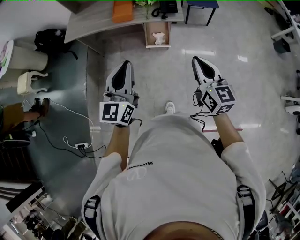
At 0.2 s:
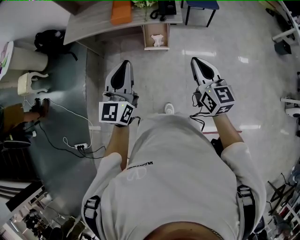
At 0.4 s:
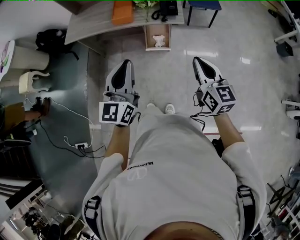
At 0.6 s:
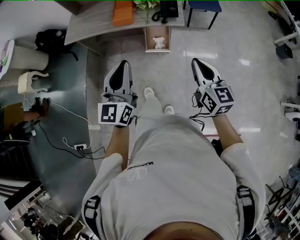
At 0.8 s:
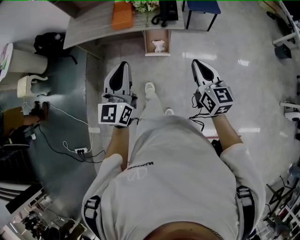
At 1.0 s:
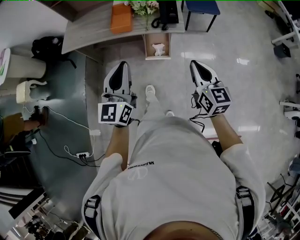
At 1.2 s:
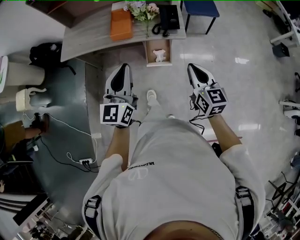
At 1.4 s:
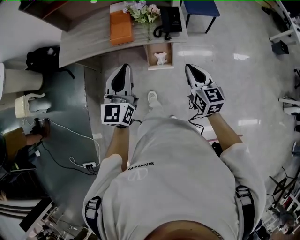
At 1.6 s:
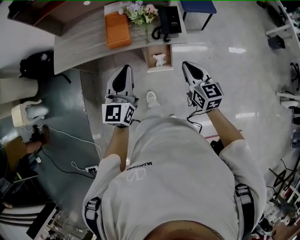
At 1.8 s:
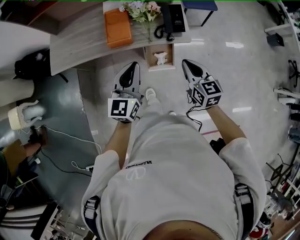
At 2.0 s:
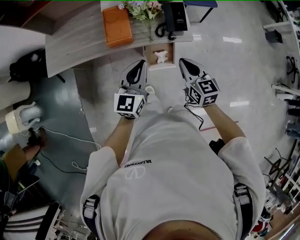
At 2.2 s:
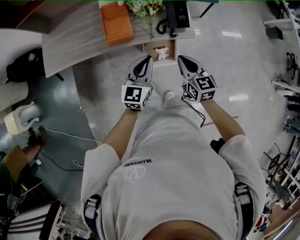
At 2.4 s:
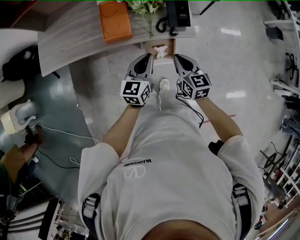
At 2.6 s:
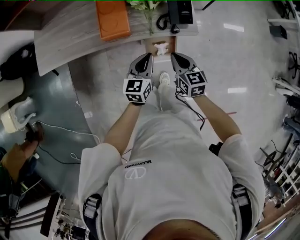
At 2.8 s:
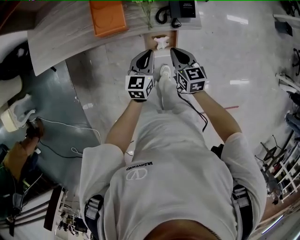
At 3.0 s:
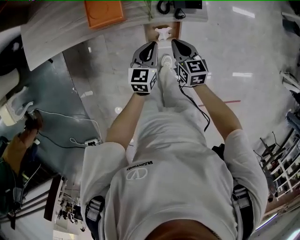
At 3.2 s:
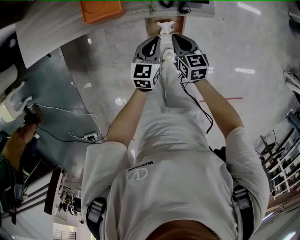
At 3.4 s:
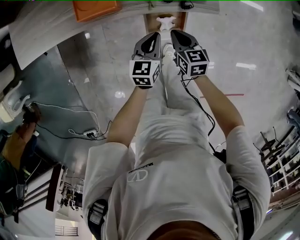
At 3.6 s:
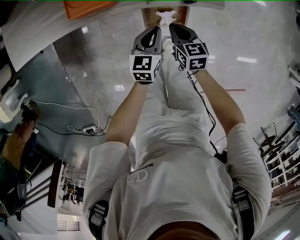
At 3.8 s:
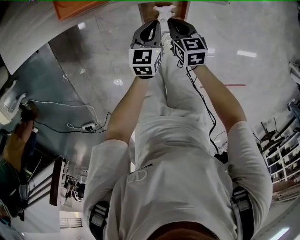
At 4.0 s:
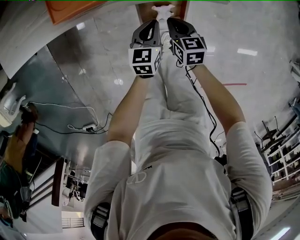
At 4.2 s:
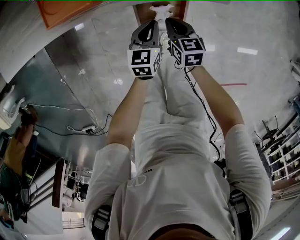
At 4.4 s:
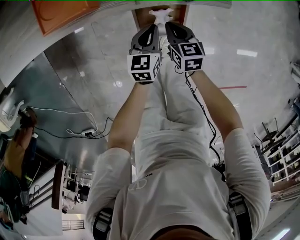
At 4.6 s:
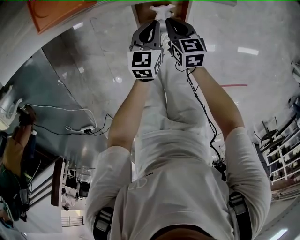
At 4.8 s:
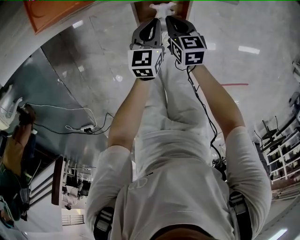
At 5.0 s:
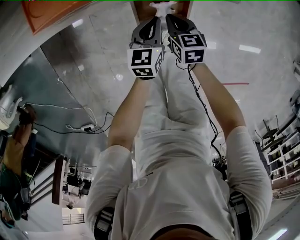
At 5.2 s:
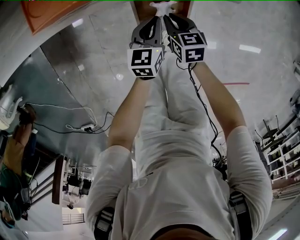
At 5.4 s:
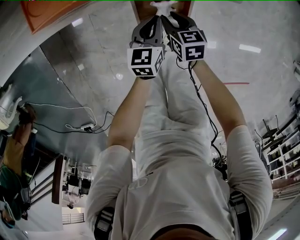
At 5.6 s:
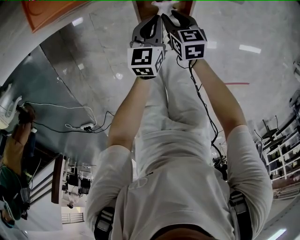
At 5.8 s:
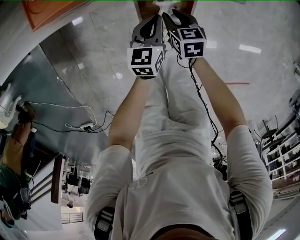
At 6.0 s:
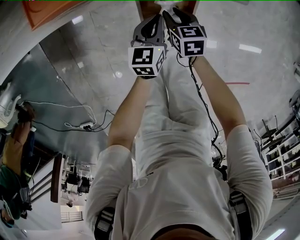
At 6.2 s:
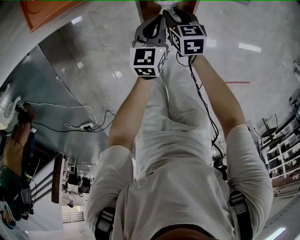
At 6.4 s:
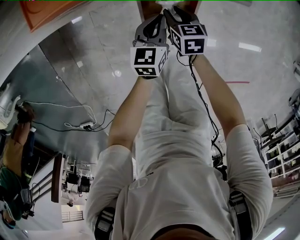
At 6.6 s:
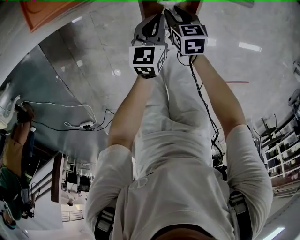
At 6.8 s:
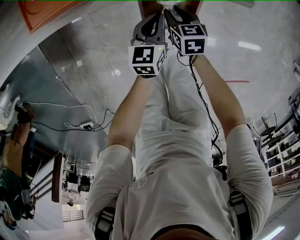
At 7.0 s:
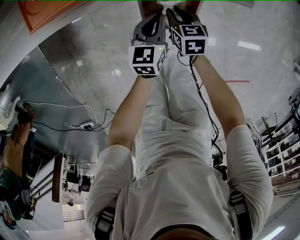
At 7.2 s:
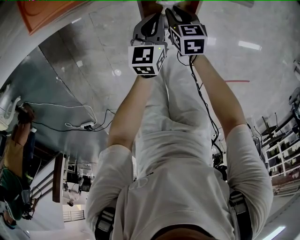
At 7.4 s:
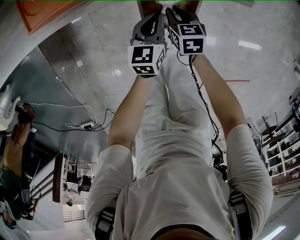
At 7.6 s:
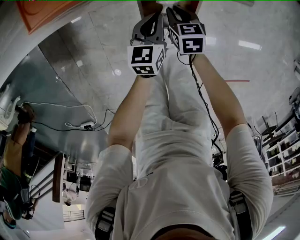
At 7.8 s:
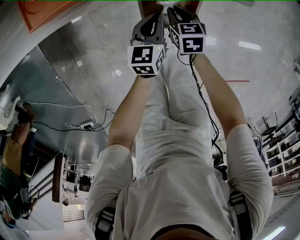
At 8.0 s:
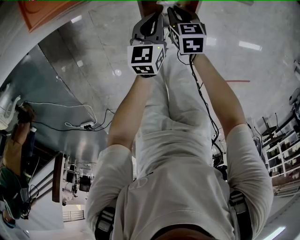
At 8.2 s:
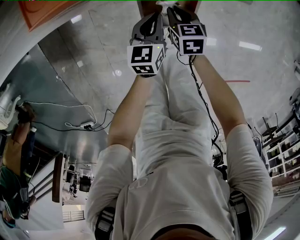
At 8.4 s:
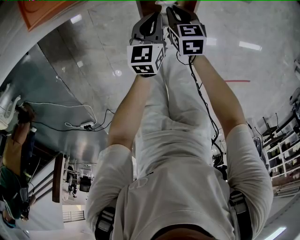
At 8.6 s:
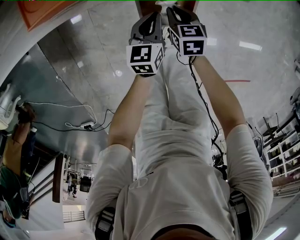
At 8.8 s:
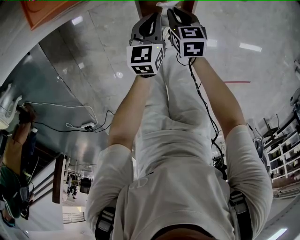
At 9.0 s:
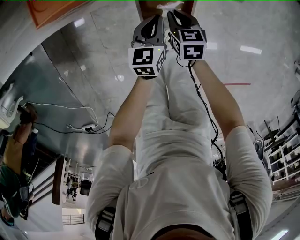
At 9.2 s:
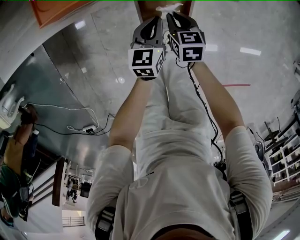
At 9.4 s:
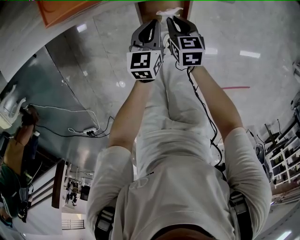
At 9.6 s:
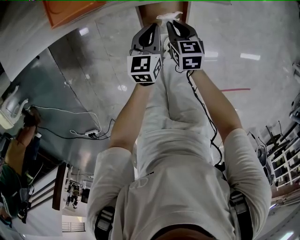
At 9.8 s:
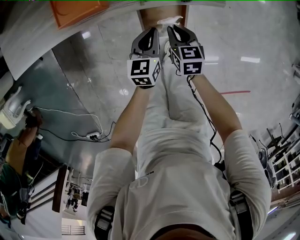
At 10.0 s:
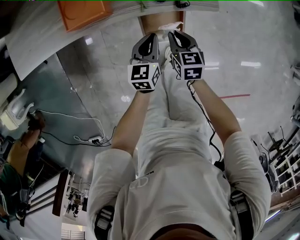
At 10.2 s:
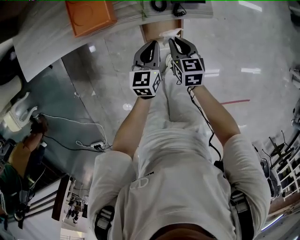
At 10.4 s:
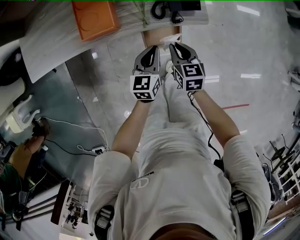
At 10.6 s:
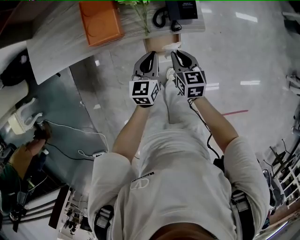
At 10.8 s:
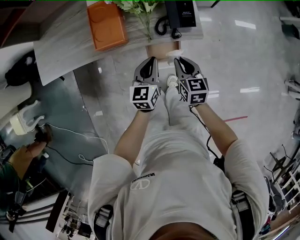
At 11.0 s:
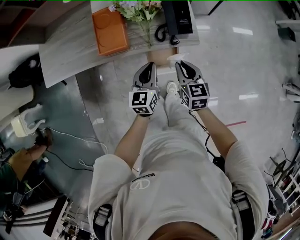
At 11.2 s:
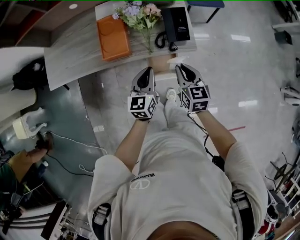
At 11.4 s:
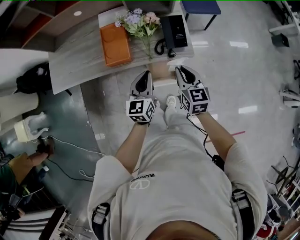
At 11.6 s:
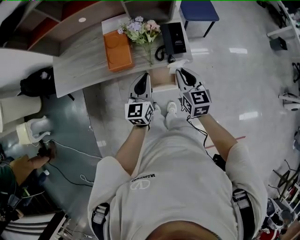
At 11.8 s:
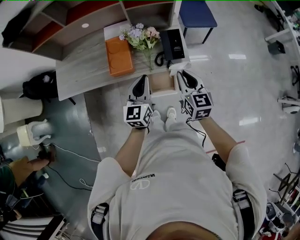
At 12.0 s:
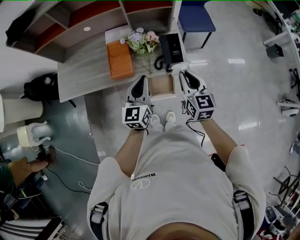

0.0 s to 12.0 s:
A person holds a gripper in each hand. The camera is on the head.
0.0 to 1.6 s: Both grippers move forward, roughly 30 cm.
1.6 to 3.0 s: The right gripper is displaced downward and forward by some 30 cm. The left gripper moves downward, some 30 cm, and changes its angle by some 30 degrees.
3.0 to 4.4 s: Both grippers move downward, some 20 cm.
4.4 to 6.0 s: The right gripper opens its fingers.
6.0 to 7.6 s: Both grippers stay about where they are.
7.6 to 9.0 s: The grippers stay close to where they were, moving slightly.
9.0 to 10.4 s: The grippers both shift upward by roughly 20 cm.
10.4 to 12.0 s: The two grippers go approximately 30 cm upward. The left gripper swivels roughly 20 degrees. The right gripper turns by some 20 degrees.

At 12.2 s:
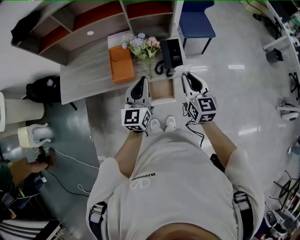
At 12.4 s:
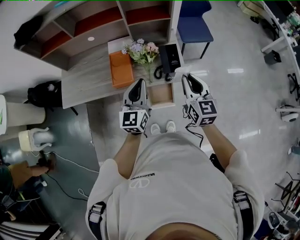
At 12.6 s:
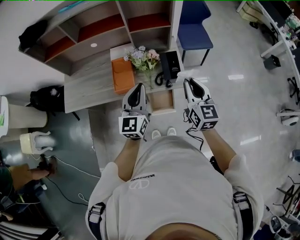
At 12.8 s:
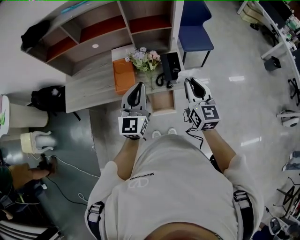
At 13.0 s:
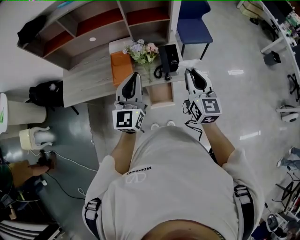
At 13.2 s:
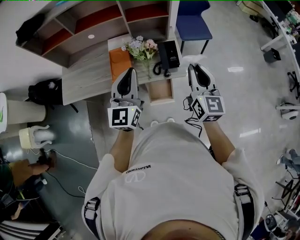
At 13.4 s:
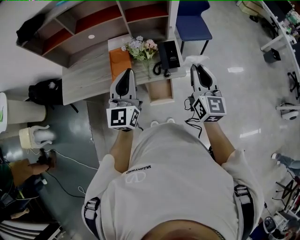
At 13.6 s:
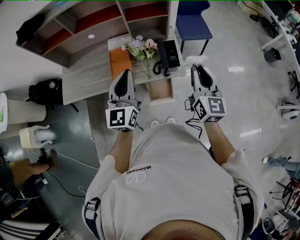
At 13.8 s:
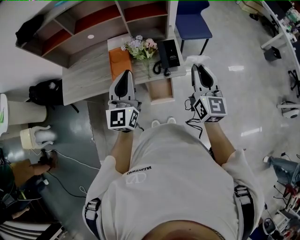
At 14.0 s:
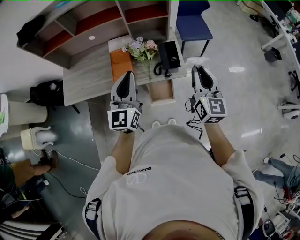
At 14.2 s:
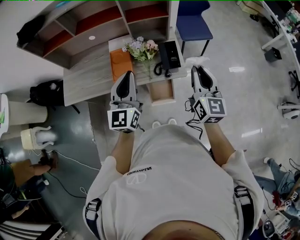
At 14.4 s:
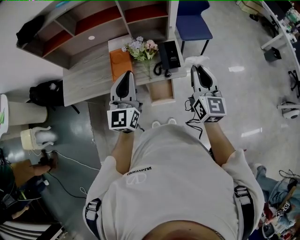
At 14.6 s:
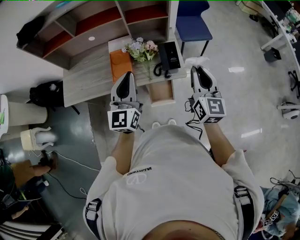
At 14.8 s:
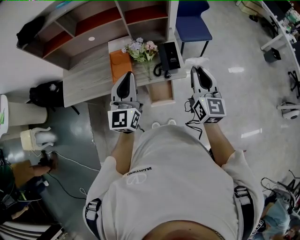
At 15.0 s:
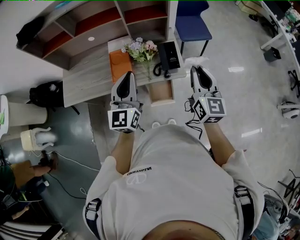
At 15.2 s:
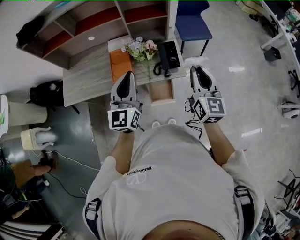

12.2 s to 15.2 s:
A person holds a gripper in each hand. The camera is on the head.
12.2 to 13.8 s: The grippers both shift upward by approximately 10 cm.
13.8 to 15.2 s: Both grippers stay about where they are.

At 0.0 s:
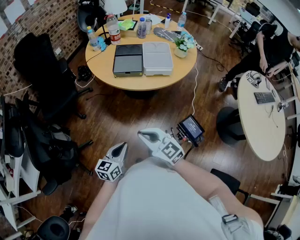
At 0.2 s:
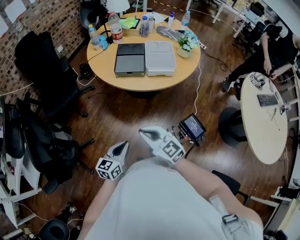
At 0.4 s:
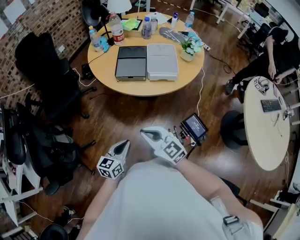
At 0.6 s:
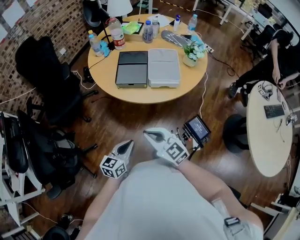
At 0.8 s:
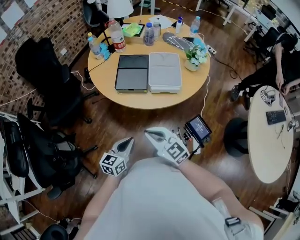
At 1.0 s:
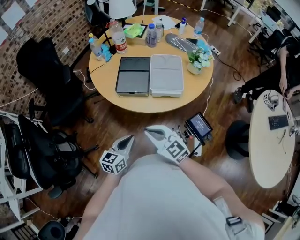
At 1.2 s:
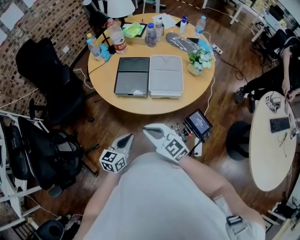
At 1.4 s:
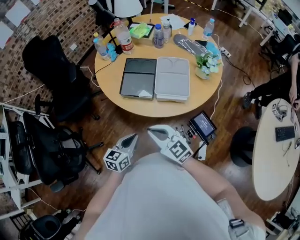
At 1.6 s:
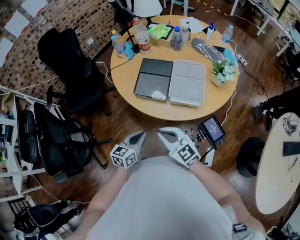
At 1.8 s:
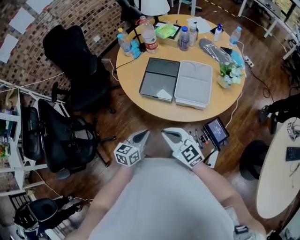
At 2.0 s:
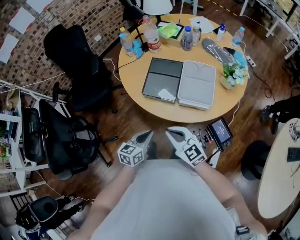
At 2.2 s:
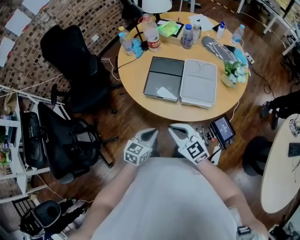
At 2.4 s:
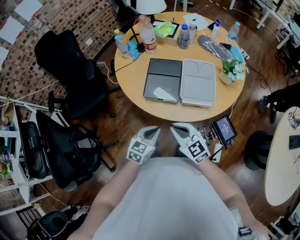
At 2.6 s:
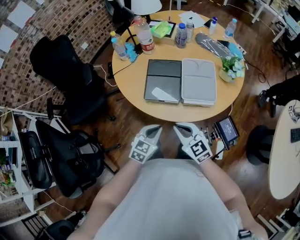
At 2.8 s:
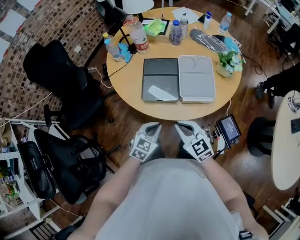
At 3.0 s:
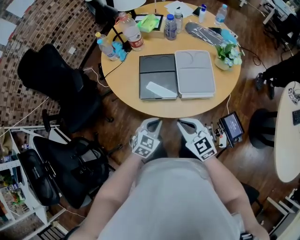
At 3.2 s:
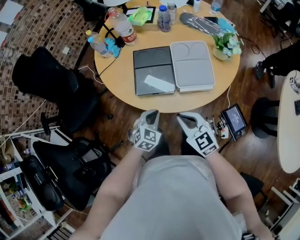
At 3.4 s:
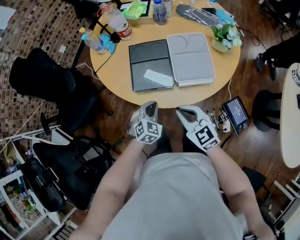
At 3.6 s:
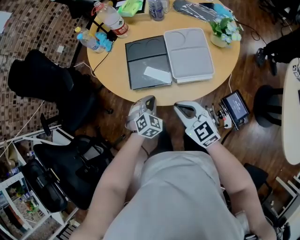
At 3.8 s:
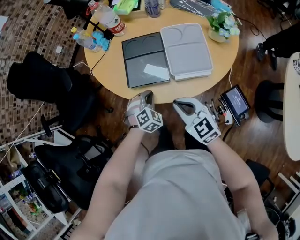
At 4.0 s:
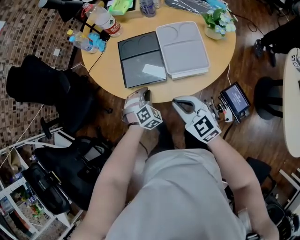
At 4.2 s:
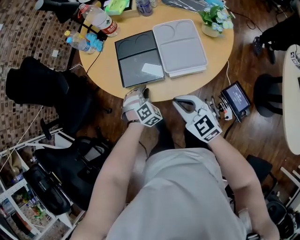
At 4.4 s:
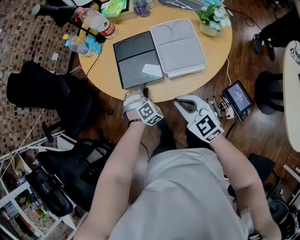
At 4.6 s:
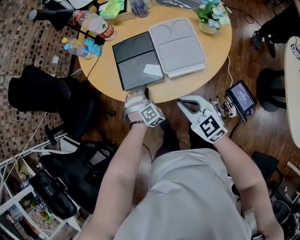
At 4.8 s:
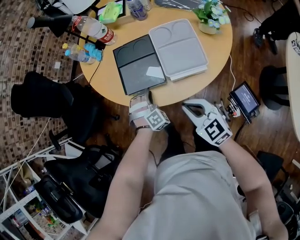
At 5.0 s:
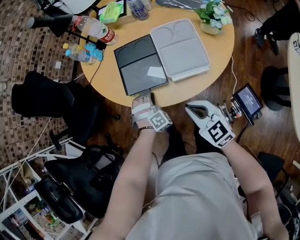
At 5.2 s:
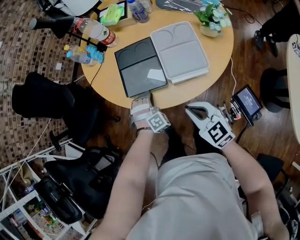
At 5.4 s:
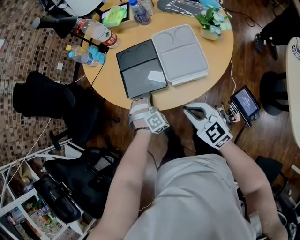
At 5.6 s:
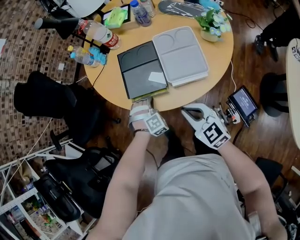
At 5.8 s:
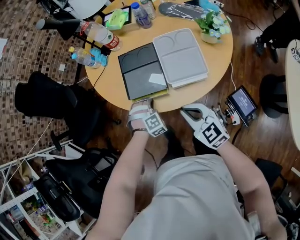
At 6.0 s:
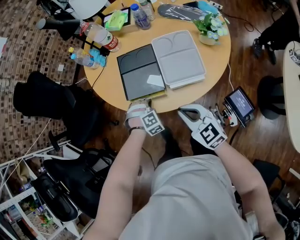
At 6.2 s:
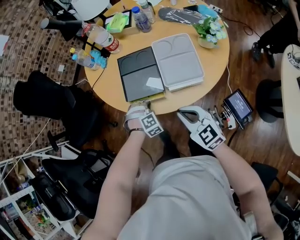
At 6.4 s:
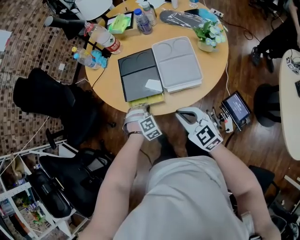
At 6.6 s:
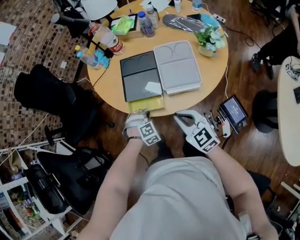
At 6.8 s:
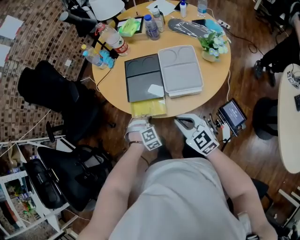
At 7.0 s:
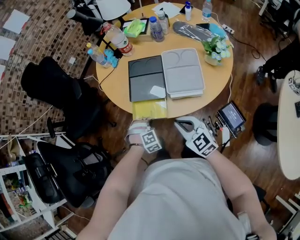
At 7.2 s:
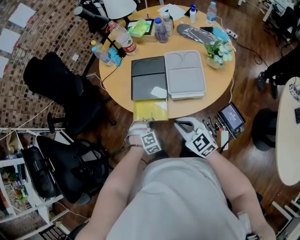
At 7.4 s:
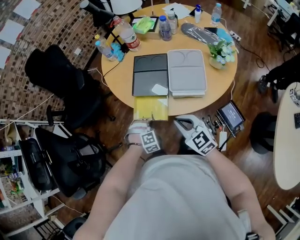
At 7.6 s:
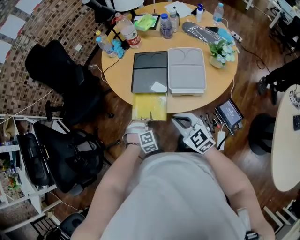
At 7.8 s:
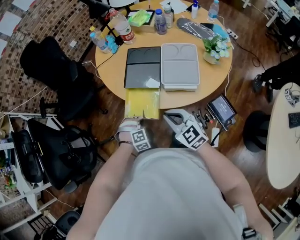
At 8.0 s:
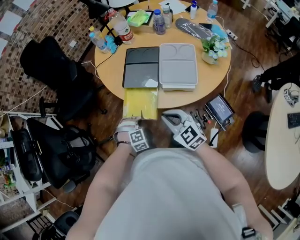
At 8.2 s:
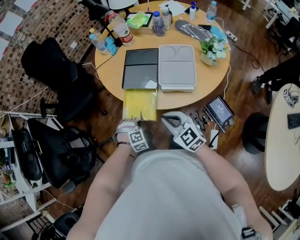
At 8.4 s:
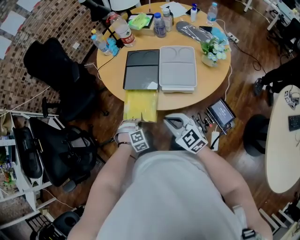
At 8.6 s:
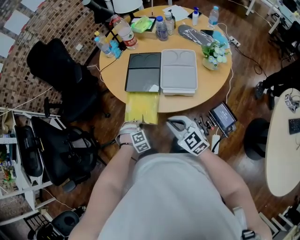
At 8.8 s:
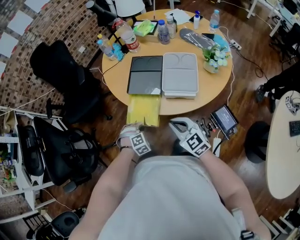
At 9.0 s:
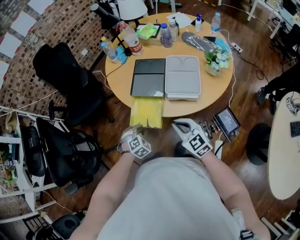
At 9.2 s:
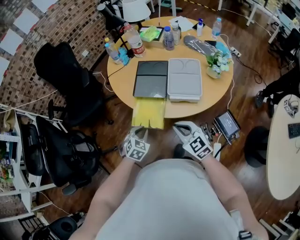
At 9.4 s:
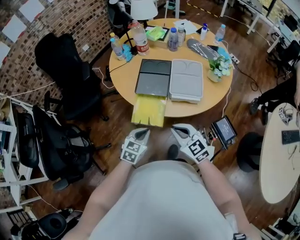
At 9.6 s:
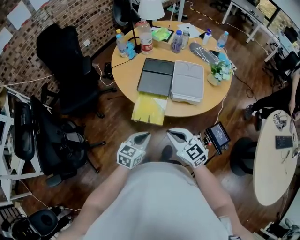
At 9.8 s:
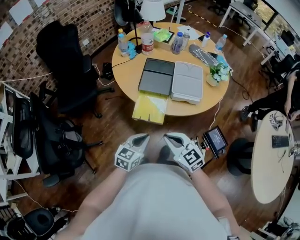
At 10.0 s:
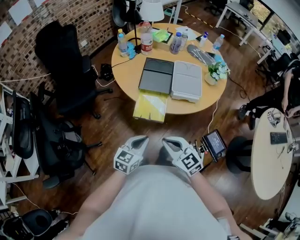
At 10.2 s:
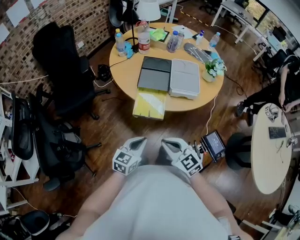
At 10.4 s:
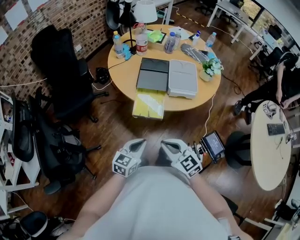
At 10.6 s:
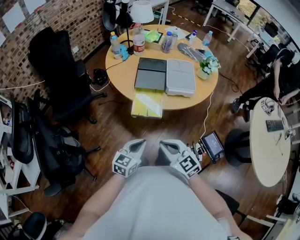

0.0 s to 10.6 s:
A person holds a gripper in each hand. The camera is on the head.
0.0 to 1.6 s: The two grippers go approximately 25 cm forward and to the right.
1.6 to 3.0 s: The grippers both shift forward and downward by about 10 cm. The left gripper changes its angle by approximately 40 degrees; the right gripper swivels about 20 degrees.
3.0 to 4.6 s: The left gripper travels forward and downward by approximately 15 cm, and rotates around the line of its fingers by about 50 degrees, clockwise from behind.
4.6 to 6.0 s: The grippers stay close to where they were, moving slightly.
6.0 to 7.6 s: The left gripper heads backward and to the left, covering about 15 cm.
7.6 to 9.0 s: The left gripper changes its angle by about 30 degrees.
9.0 to 10.6 s: The left gripper travels backward and upward by approximately 20 cm, tilts its fingers approximately 40 degrees upward, and closes its fingers, while the right gripper heads backward and to the left, covering some 20 cm.
